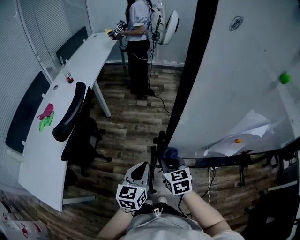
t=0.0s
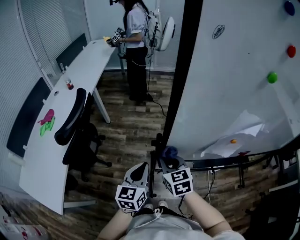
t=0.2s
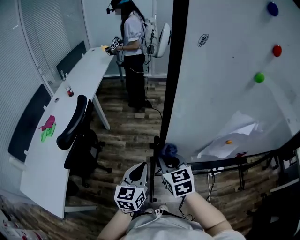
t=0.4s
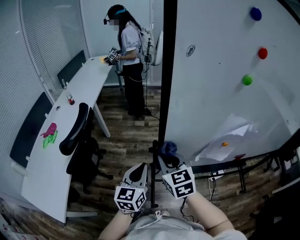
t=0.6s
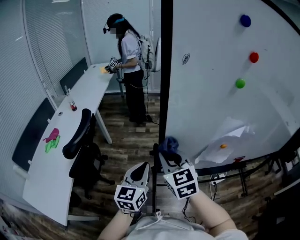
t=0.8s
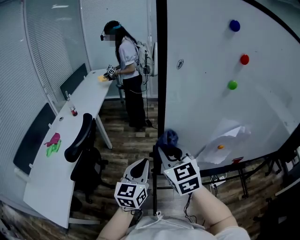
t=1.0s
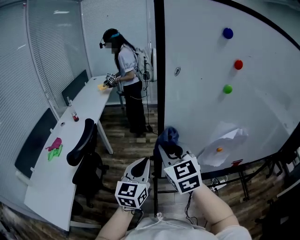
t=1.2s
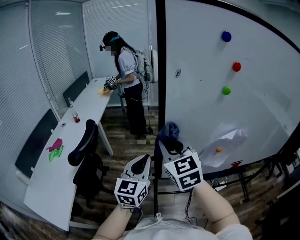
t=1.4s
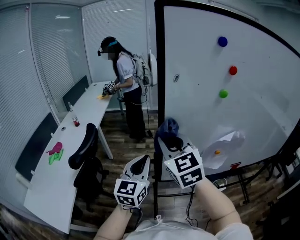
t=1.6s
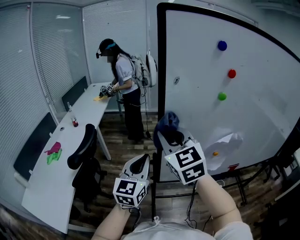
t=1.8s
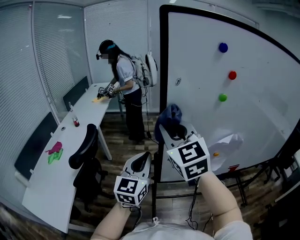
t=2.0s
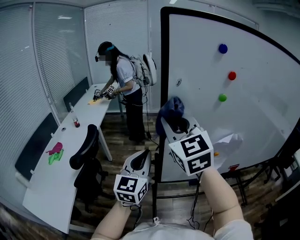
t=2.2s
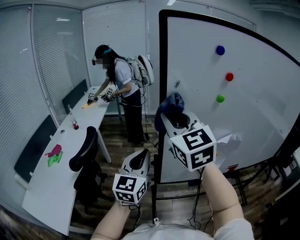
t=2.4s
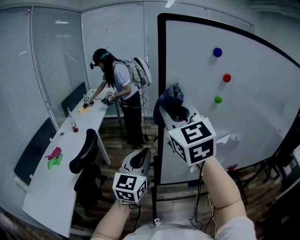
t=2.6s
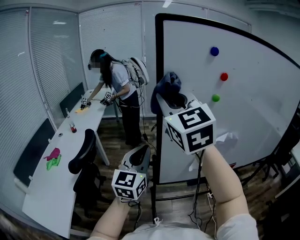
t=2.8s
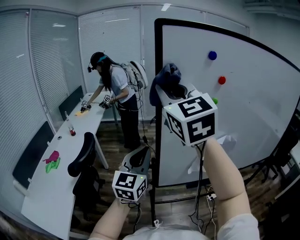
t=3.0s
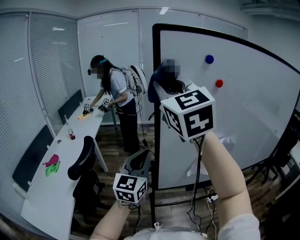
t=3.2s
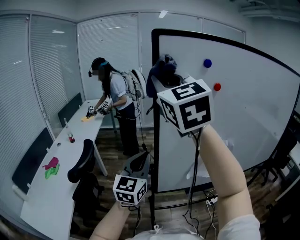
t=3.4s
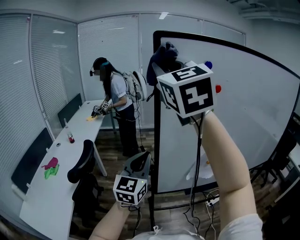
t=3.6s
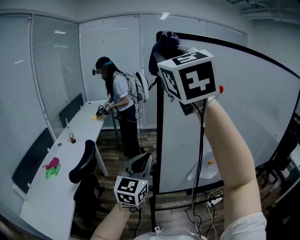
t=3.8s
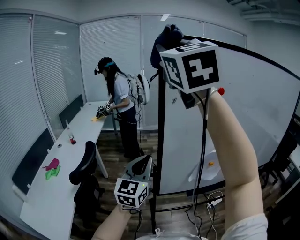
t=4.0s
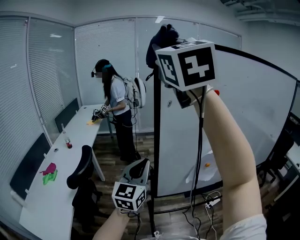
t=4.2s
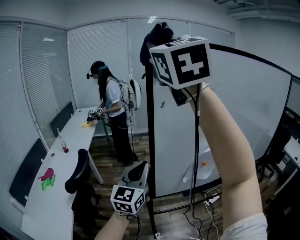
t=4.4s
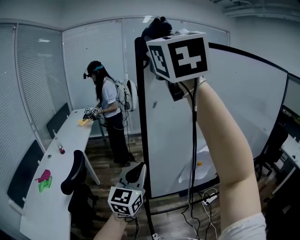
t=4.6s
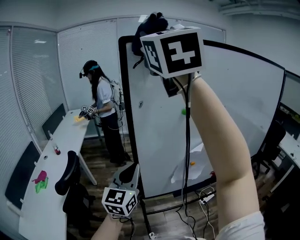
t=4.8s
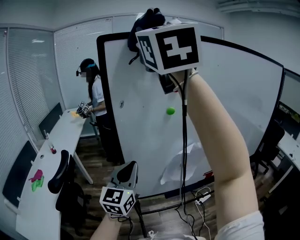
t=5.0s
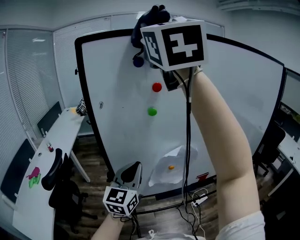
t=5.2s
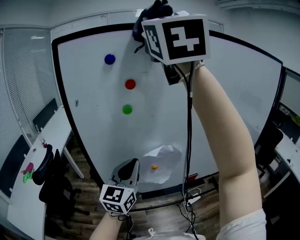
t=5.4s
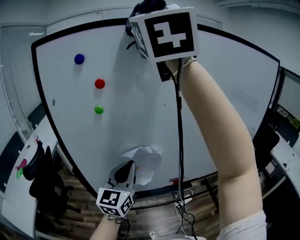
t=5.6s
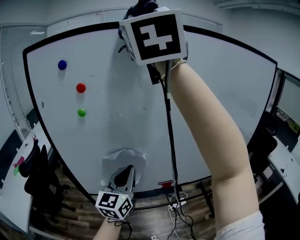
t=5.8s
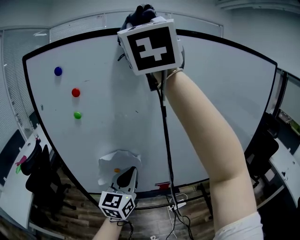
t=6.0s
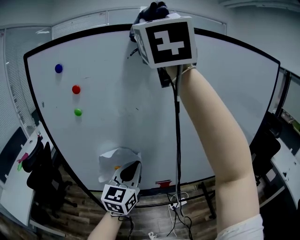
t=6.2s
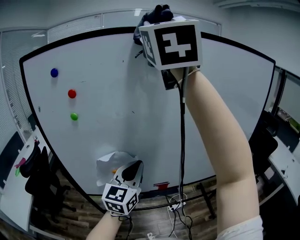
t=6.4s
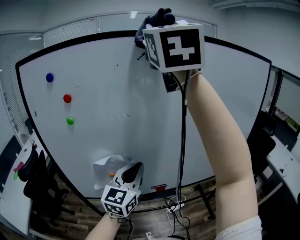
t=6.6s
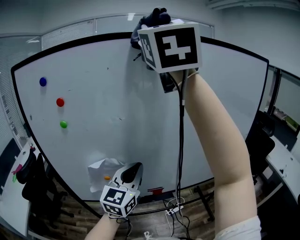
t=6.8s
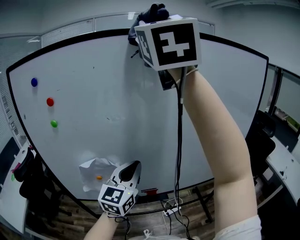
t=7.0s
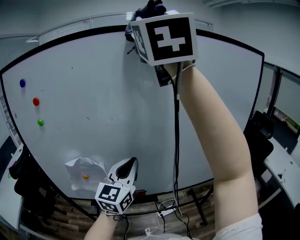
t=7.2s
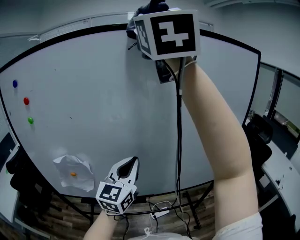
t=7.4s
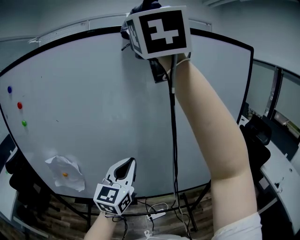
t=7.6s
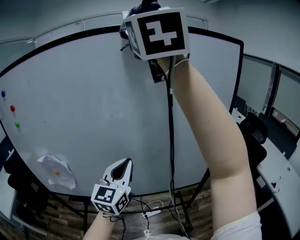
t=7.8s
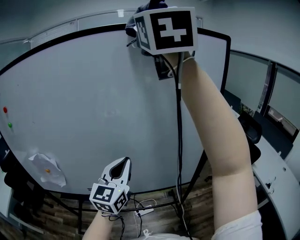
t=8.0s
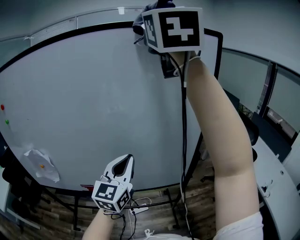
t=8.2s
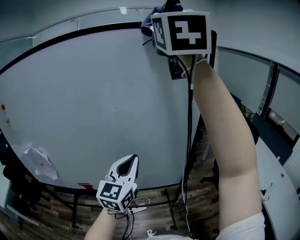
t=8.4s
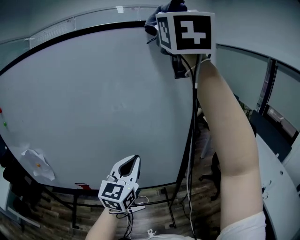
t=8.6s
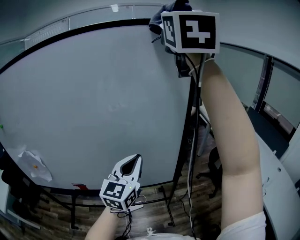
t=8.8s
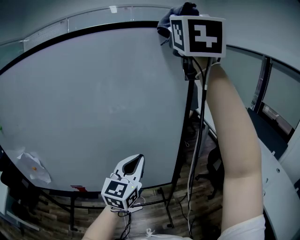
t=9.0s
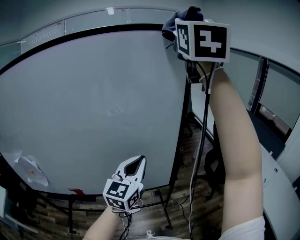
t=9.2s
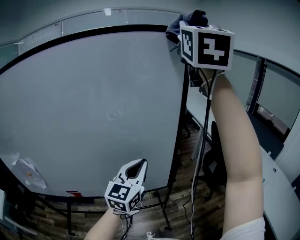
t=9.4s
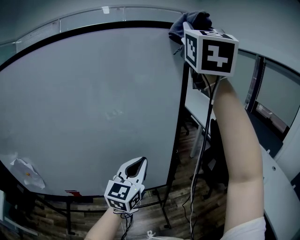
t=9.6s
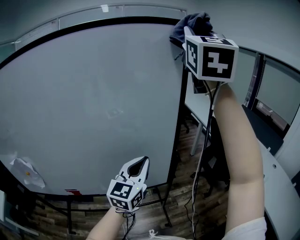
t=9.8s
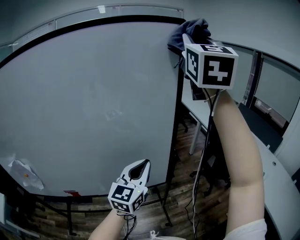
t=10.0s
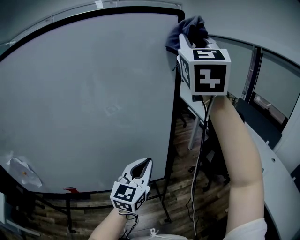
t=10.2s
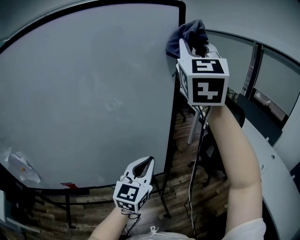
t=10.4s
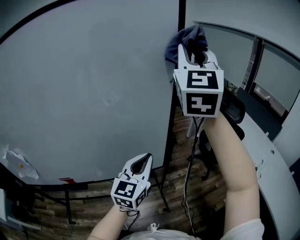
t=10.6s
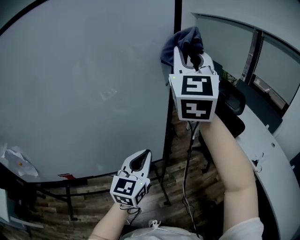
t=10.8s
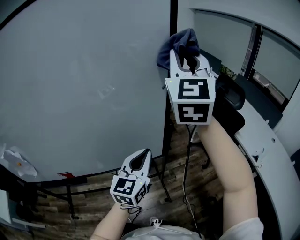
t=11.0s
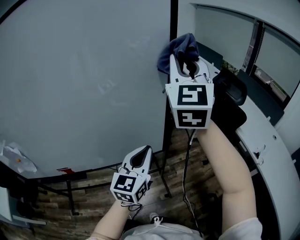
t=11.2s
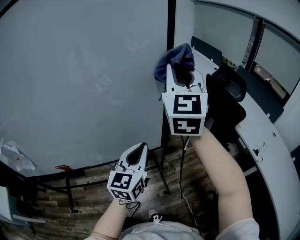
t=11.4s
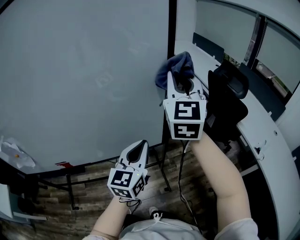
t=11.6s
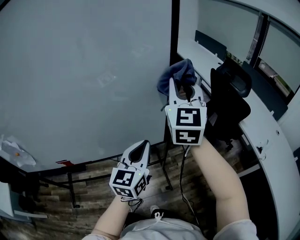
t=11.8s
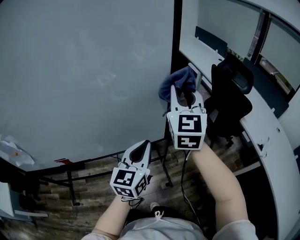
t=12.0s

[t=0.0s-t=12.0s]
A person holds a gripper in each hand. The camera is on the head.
t=0.0s to t=1.6s: The right gripper shifts some 35 cm upward, and swivels about 30 degrees. The left gripper moves upward, approximately 20 cm, and turns by some 20 degrees.
t=1.6s to t=3.0s: The right gripper shifts some 20 cm upward. The left gripper is displaced upward by some 10 cm.
t=3.0s to t=4.4s: The right gripper moves upward, roughly 15 cm.
t=4.4s to t=6.0s: The two grippers go approximately 40 cm to the right.
t=6.0s to t=7.6s: Both grippers move to the right, some 30 cm.
t=7.6s to t=9.0s: The grippers both shift to the right by some 35 cm.
t=9.0s to t=10.4s: The right gripper moves downward and to the right, some 15 cm, while the left gripper shifts about 10 cm to the right and downward.
t=10.4s to t=12.0s: The right gripper moves downward, roughly 35 cm, and turns by about 20 degrees; the left gripper goes approximately 10 cm downward.

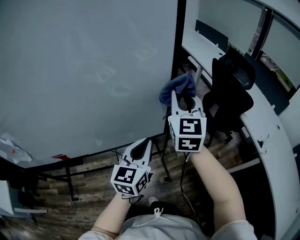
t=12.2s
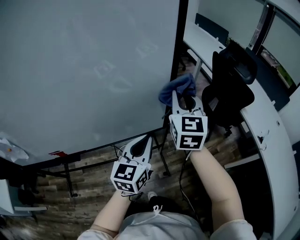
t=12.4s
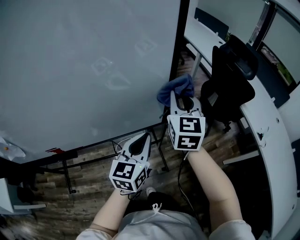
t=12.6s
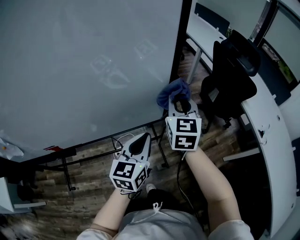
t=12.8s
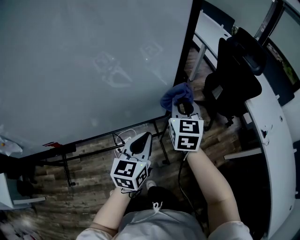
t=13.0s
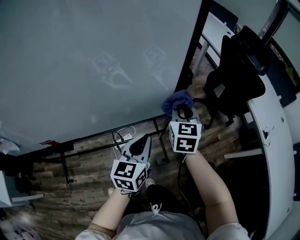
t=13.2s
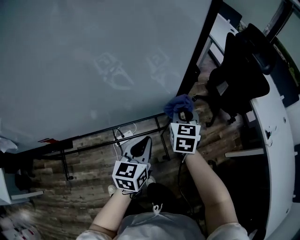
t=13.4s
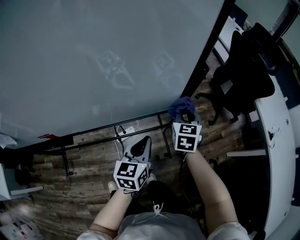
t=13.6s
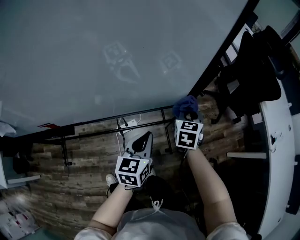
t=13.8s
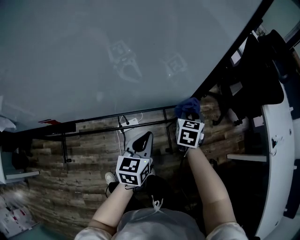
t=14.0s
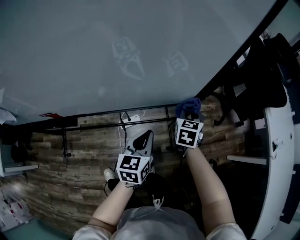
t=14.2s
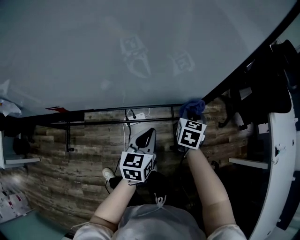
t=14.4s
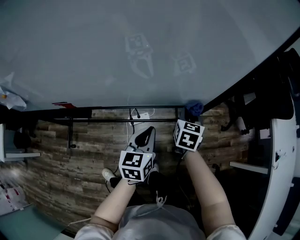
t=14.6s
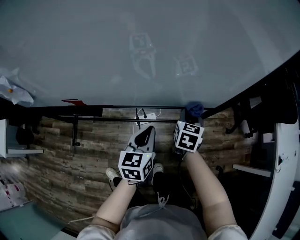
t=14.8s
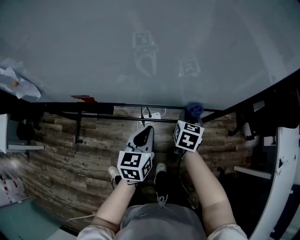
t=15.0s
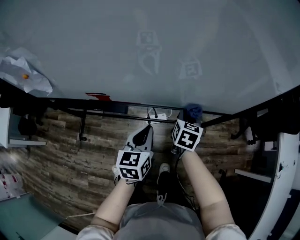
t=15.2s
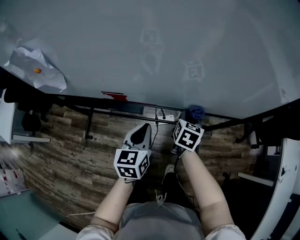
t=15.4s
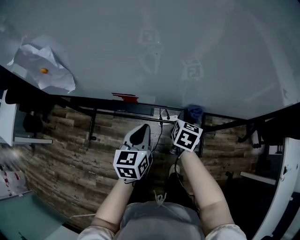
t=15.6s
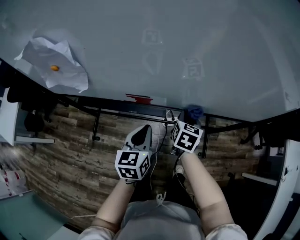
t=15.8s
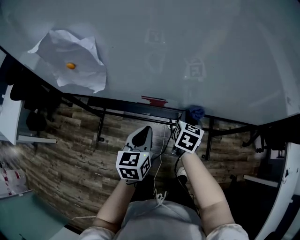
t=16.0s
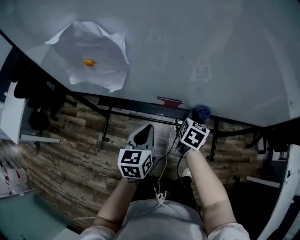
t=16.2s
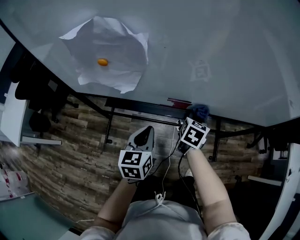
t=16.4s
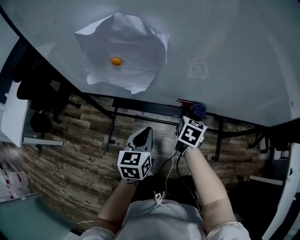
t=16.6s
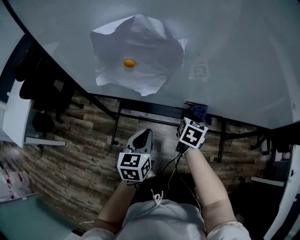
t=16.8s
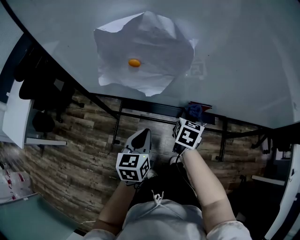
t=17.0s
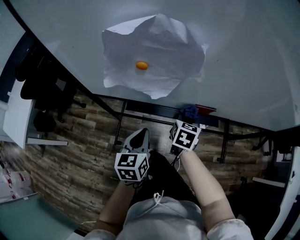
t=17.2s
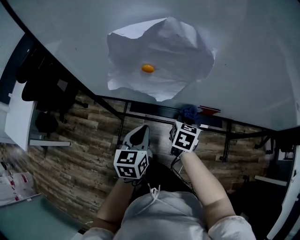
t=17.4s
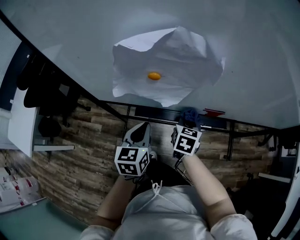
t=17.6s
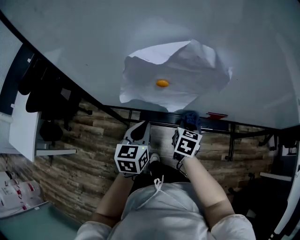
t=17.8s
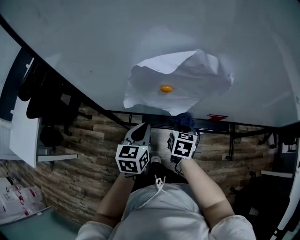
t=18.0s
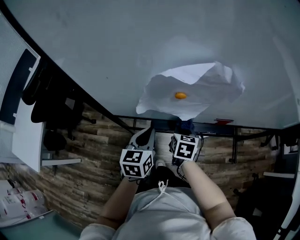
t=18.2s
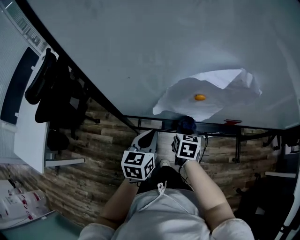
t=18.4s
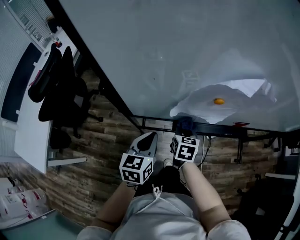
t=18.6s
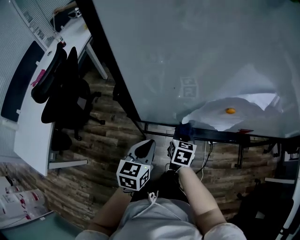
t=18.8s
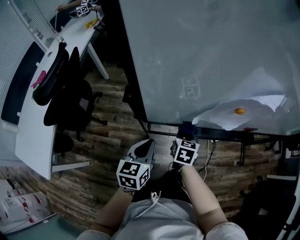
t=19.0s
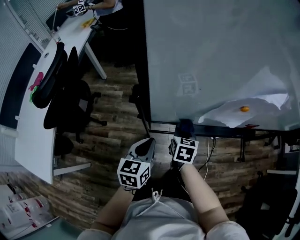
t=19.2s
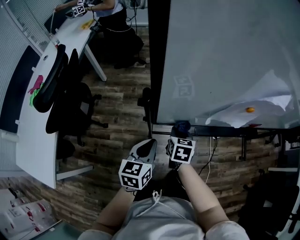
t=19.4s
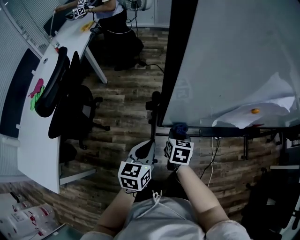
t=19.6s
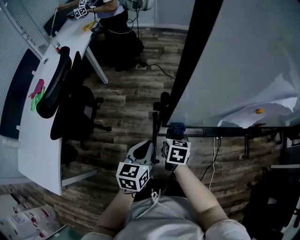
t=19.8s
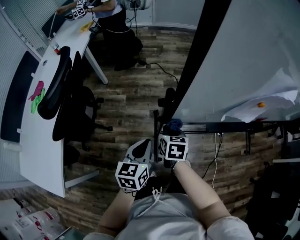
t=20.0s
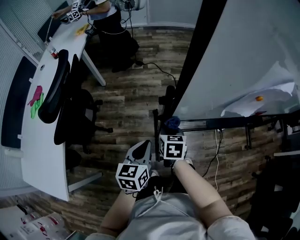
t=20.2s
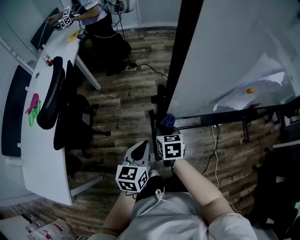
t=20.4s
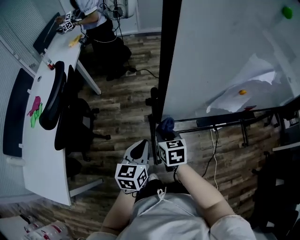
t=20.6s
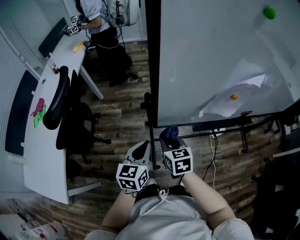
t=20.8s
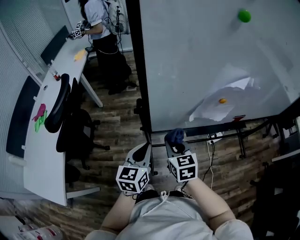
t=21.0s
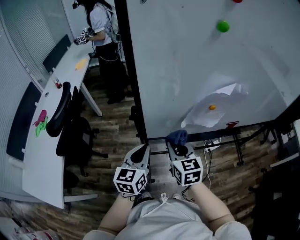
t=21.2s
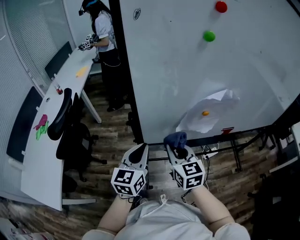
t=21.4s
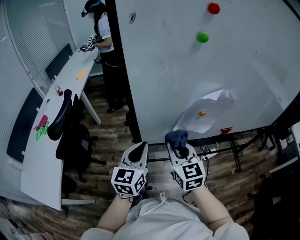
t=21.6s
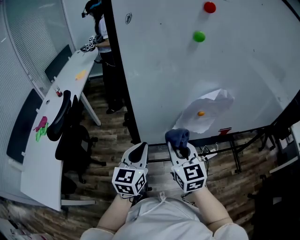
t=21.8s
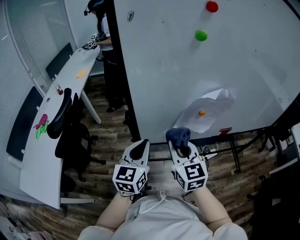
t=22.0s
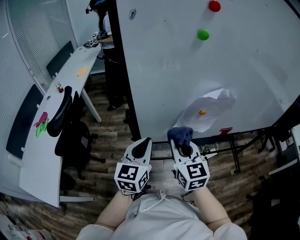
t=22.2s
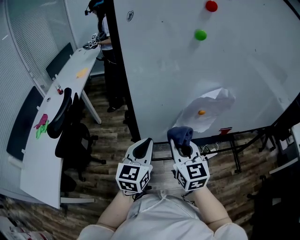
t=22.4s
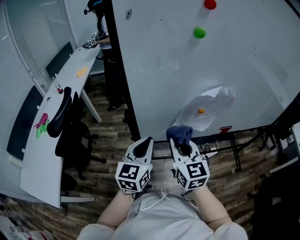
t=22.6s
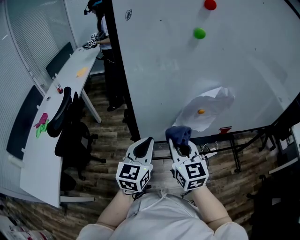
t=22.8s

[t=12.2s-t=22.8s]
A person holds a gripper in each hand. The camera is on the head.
t=12.2s to t=13.8s: The right gripper travels downward by about 35 cm, and tilts its fingers roughly 30 degrees downward. Meanwhile the left gripper heads downward, covering roughly 20 cm.
t=13.8s to t=15.2s: The grippers both shift to the left by some 25 cm.
t=15.2s to t=16.8s: The grippers both shift to the left by some 35 cm.
t=16.8s to t=18.2s: Both grippers move to the left, approximately 20 cm.
t=18.2s to t=19.8s: Both grippers travel together to the left, roughly 25 cm.
t=19.8s to t=21.2s: The left gripper is displaced upward and to the right by some 15 cm. The right gripper heads upward, covering roughly 20 cm, and rotates some 30 degrees.
t=21.2s to t=22.8s: The right gripper heads upward, covering approximately 10 cm. The left gripper travels upward and to the right by roughly 10 cm.

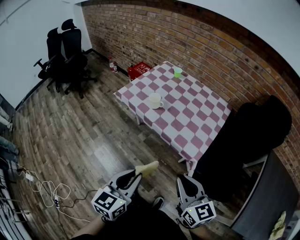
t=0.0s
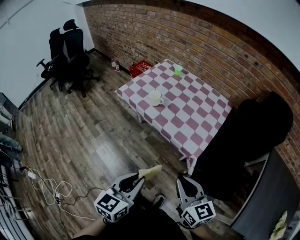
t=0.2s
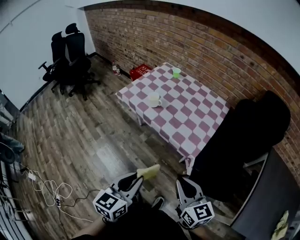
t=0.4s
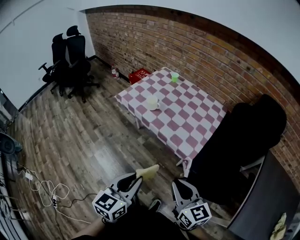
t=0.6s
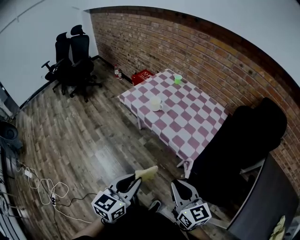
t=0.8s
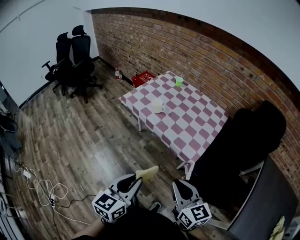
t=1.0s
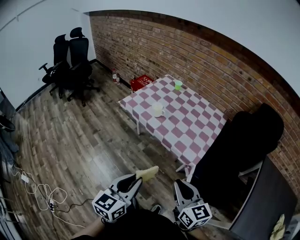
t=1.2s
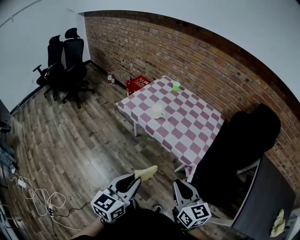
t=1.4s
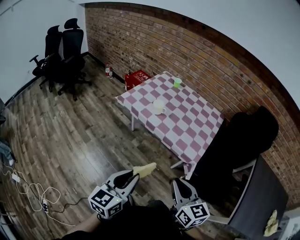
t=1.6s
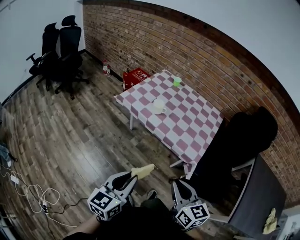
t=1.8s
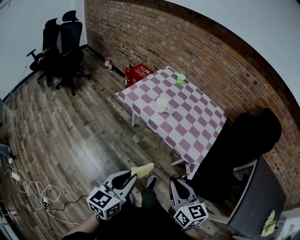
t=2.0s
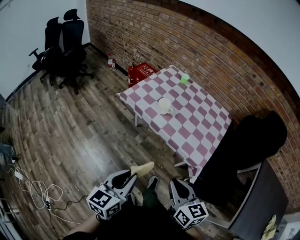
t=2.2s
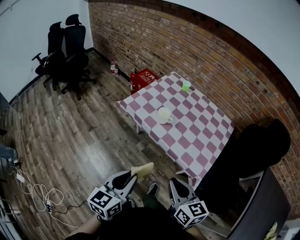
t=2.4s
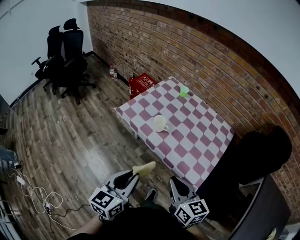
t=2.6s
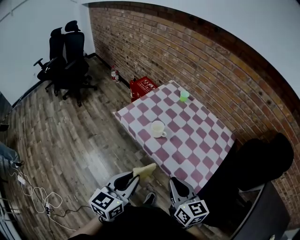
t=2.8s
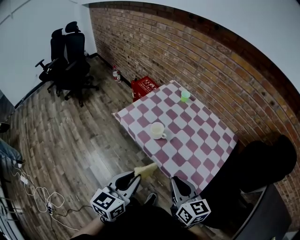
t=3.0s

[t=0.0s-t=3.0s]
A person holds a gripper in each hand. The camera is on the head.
t=0.0s to t=1.6s: Both grippers move to the left, approximately 10 cm.
t=1.6s to t=3.0s: The grippers both shift forward by approximately 25 cm.
